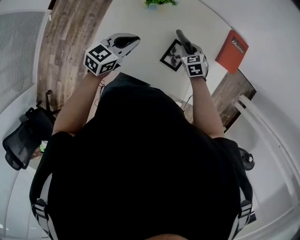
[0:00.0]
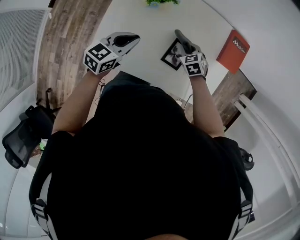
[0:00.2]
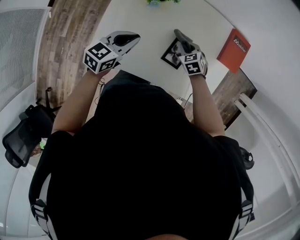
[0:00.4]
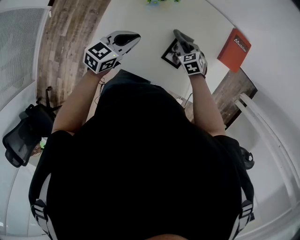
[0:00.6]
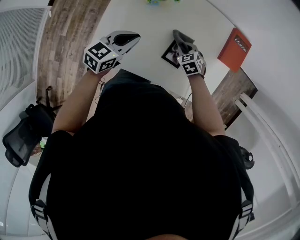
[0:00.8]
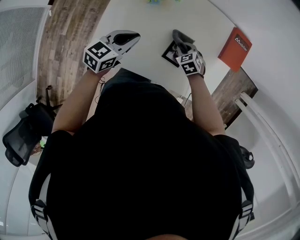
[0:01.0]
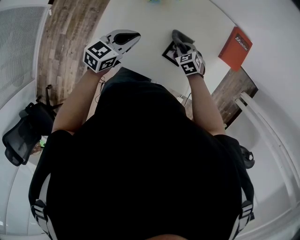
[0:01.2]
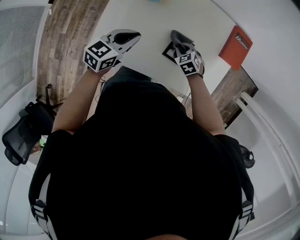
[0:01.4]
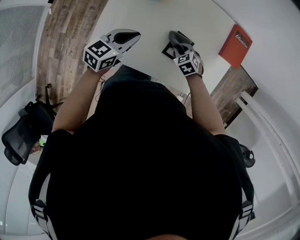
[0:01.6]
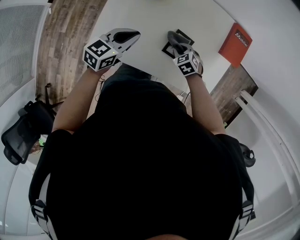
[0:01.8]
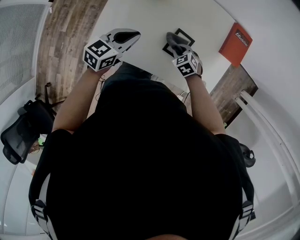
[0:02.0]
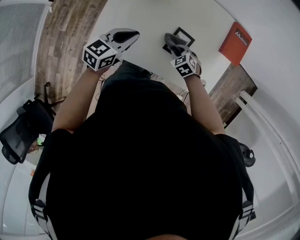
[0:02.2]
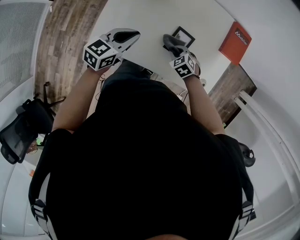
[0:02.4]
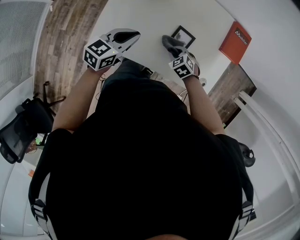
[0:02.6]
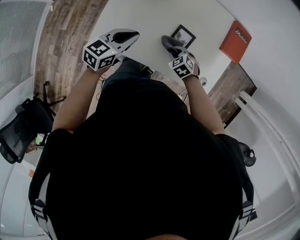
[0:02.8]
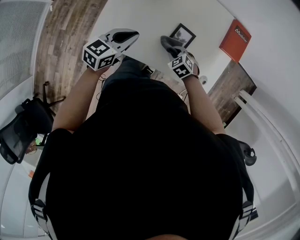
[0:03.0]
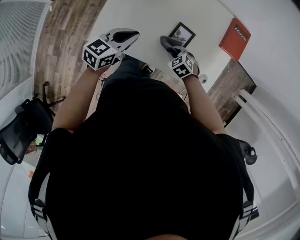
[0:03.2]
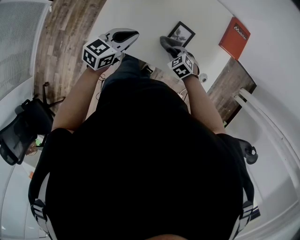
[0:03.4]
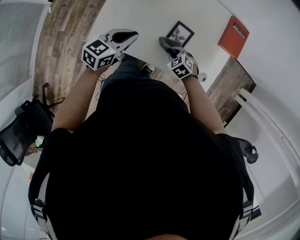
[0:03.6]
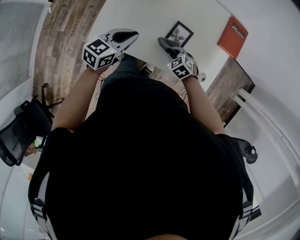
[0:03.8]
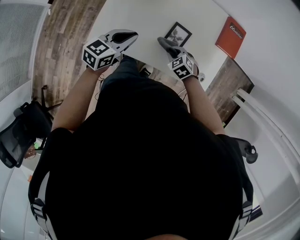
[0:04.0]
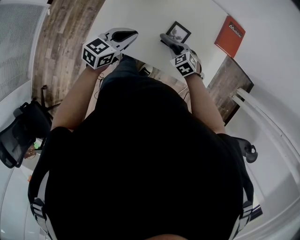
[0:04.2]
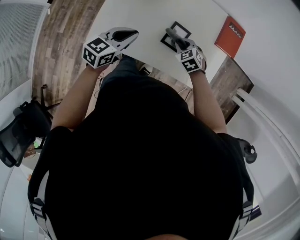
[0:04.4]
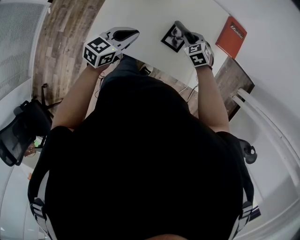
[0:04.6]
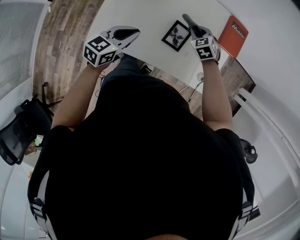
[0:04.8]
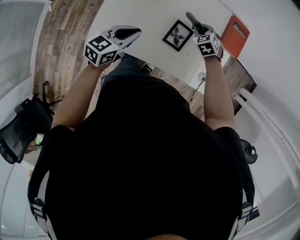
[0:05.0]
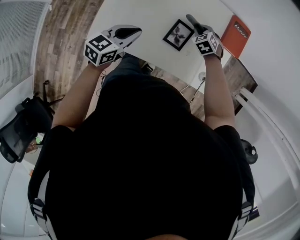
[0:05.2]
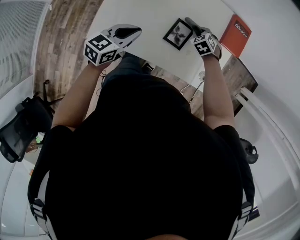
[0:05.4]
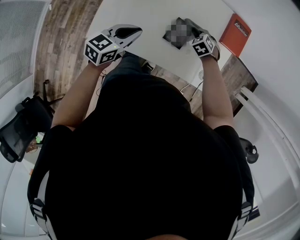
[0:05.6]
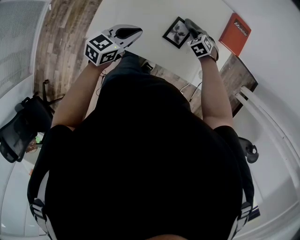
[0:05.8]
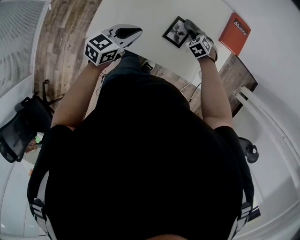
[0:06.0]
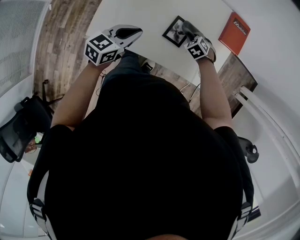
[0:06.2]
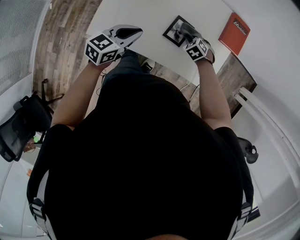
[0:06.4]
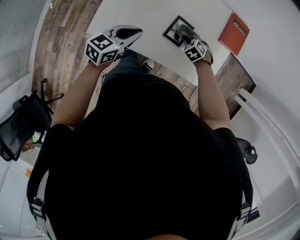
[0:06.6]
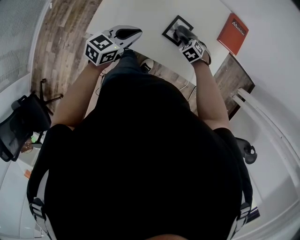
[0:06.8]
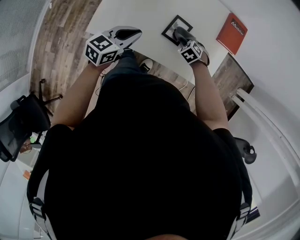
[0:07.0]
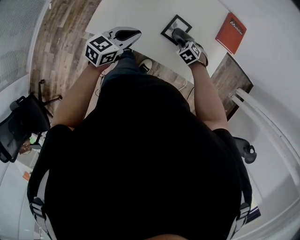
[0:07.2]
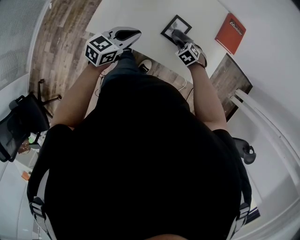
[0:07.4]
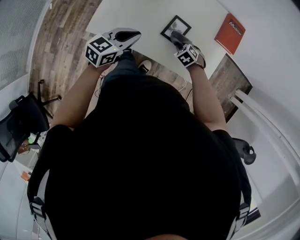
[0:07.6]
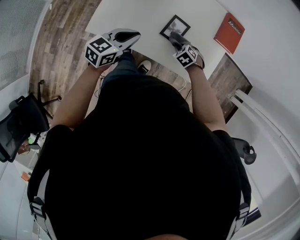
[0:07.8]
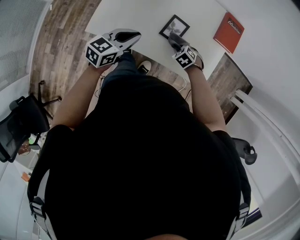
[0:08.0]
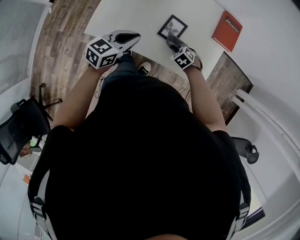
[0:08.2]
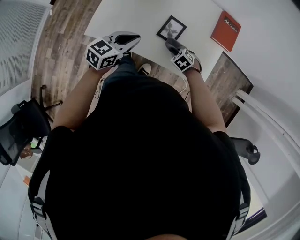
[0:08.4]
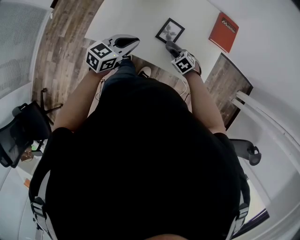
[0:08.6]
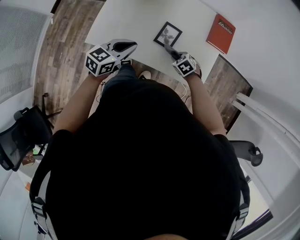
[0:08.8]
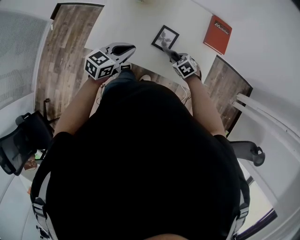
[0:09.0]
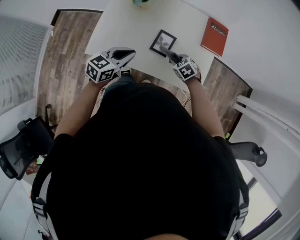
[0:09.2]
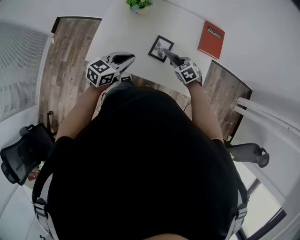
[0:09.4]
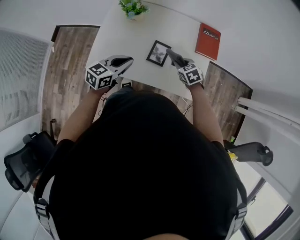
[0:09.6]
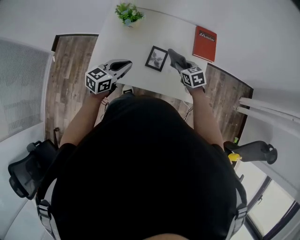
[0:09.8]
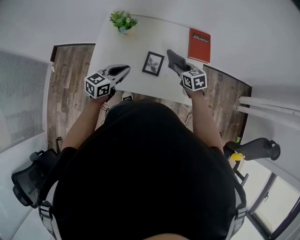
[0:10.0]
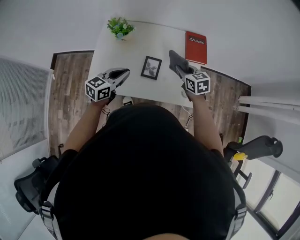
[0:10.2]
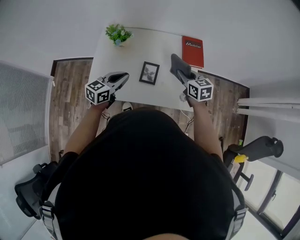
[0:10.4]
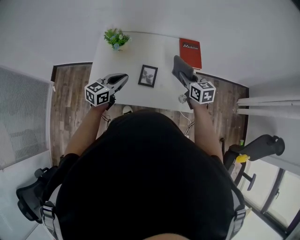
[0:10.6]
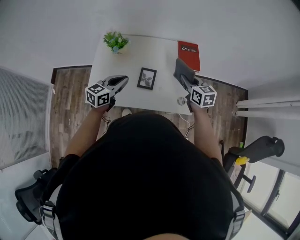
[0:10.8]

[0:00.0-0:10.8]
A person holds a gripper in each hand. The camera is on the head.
0.0 to 1.6 s: The right gripper moves backward, roughly 5 cm.
1.6 to 3.0 s: Both grippers travel together backward, approximately 5 cm.
3.0 to 4.6 s: The right gripper travels forward, upward and to the right by some 15 cm.
4.6 to 6.2 s: The right gripper heads downward, covering roughly 5 cm.
6.2 to 7.8 s: The right gripper shifts by roughly 10 cm.
7.8 to 9.2 s: The right gripper shifts approximately 5 cm upward.
9.2 to 10.8 s: The left gripper is displaced upward by approximately 5 cm. Meanwhile the right gripper heads upward and to the right, covering some 25 cm, and points its fingers some 40 degrees further upward.

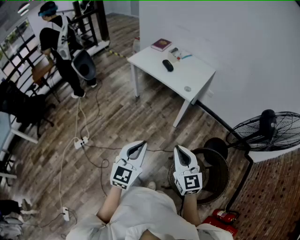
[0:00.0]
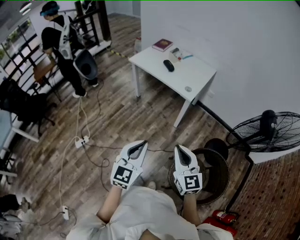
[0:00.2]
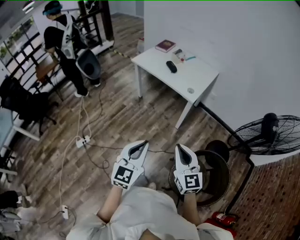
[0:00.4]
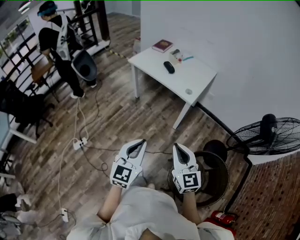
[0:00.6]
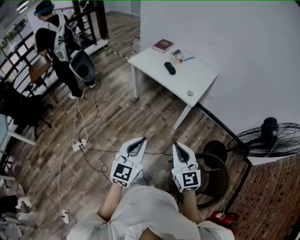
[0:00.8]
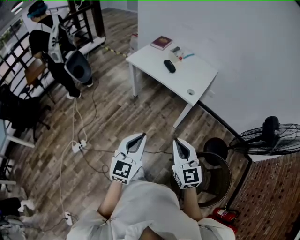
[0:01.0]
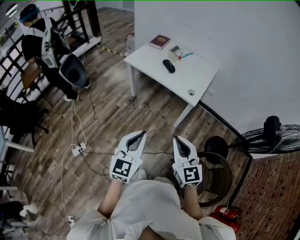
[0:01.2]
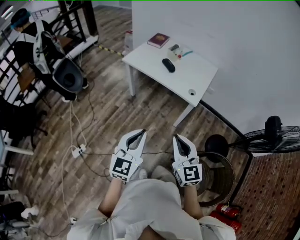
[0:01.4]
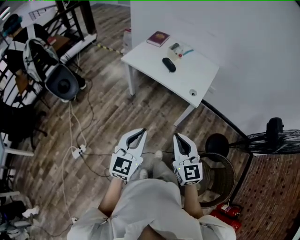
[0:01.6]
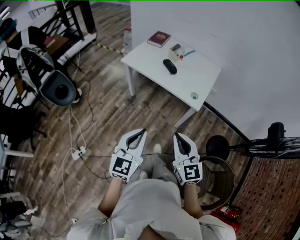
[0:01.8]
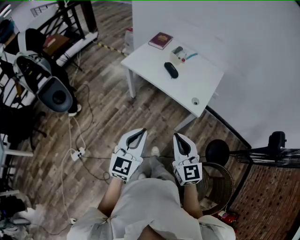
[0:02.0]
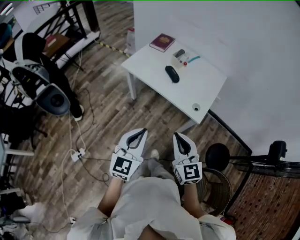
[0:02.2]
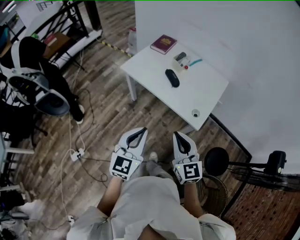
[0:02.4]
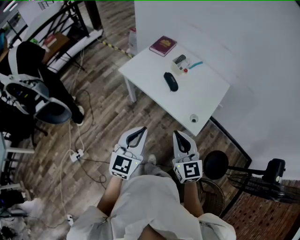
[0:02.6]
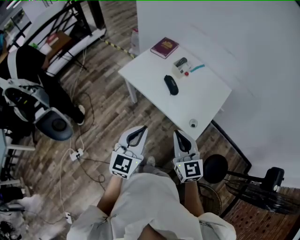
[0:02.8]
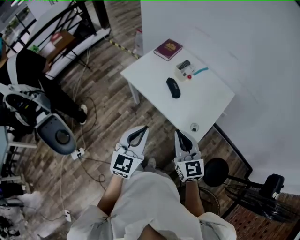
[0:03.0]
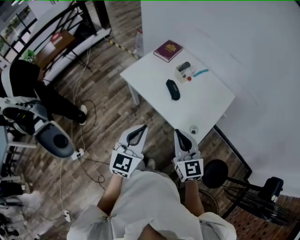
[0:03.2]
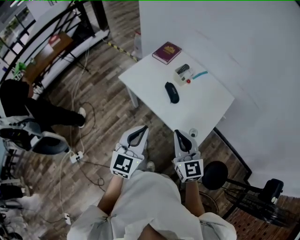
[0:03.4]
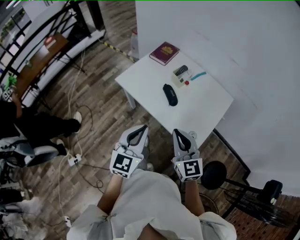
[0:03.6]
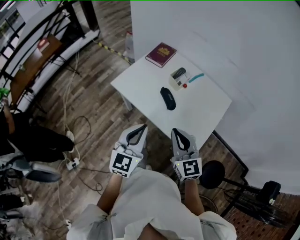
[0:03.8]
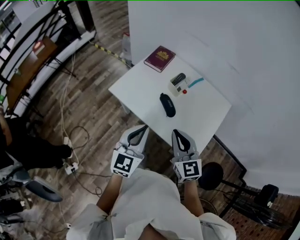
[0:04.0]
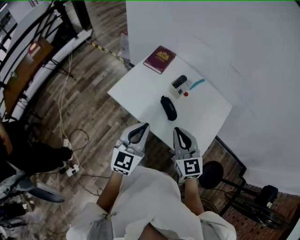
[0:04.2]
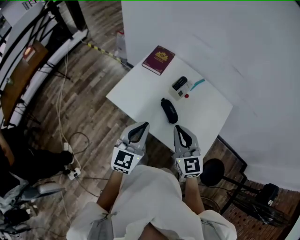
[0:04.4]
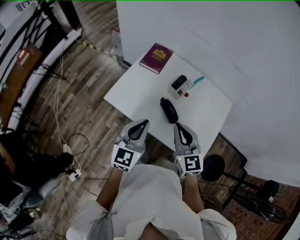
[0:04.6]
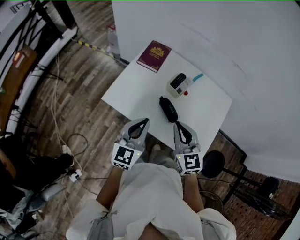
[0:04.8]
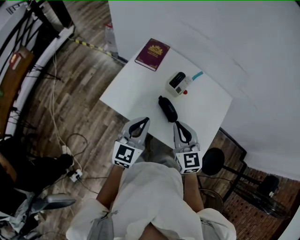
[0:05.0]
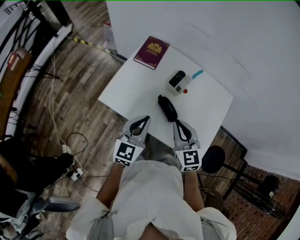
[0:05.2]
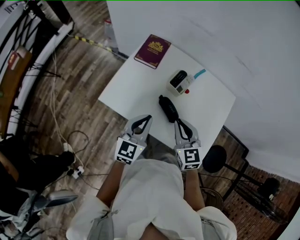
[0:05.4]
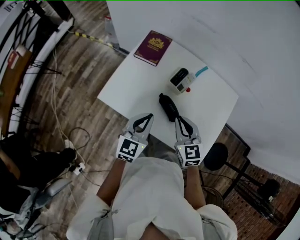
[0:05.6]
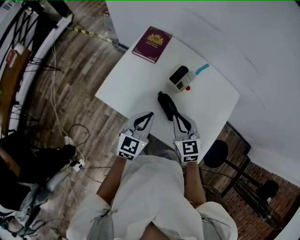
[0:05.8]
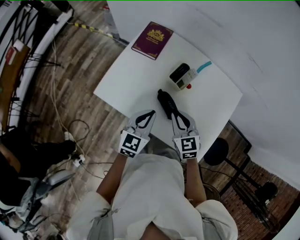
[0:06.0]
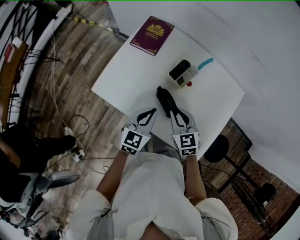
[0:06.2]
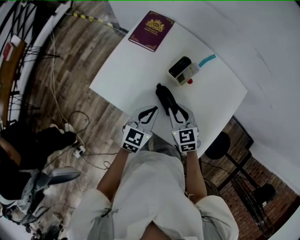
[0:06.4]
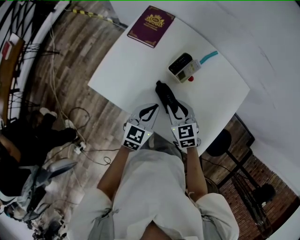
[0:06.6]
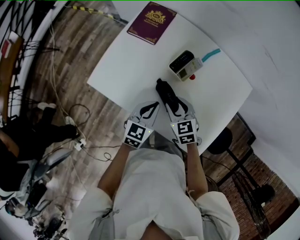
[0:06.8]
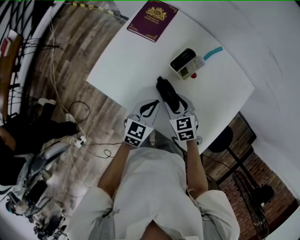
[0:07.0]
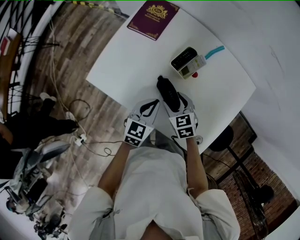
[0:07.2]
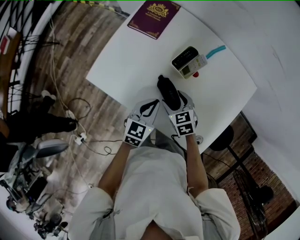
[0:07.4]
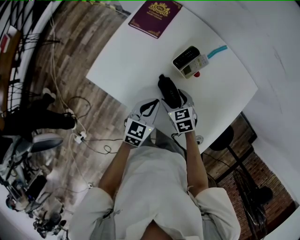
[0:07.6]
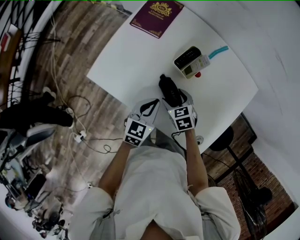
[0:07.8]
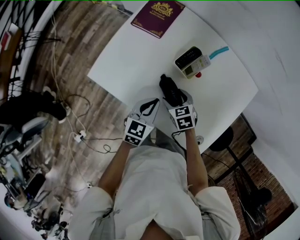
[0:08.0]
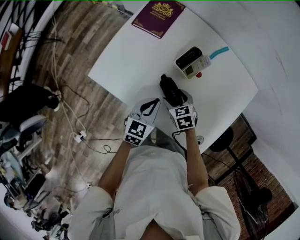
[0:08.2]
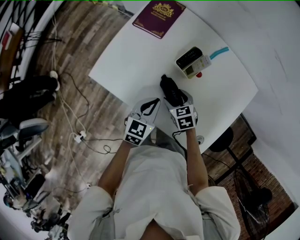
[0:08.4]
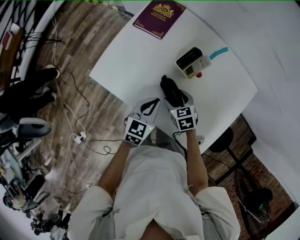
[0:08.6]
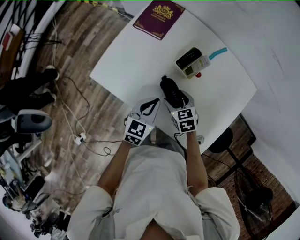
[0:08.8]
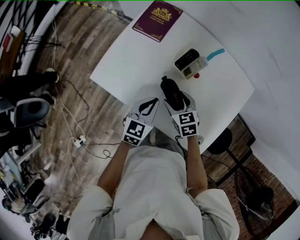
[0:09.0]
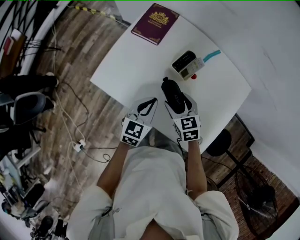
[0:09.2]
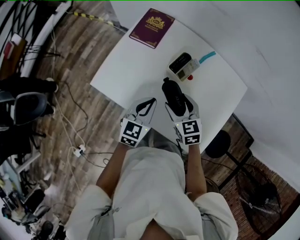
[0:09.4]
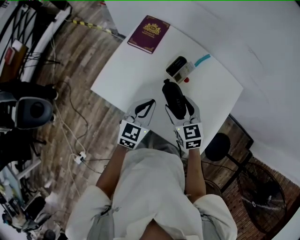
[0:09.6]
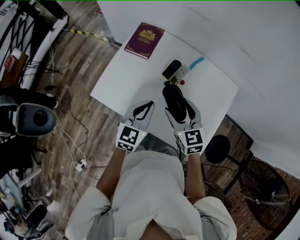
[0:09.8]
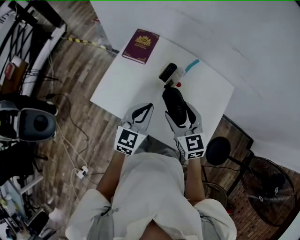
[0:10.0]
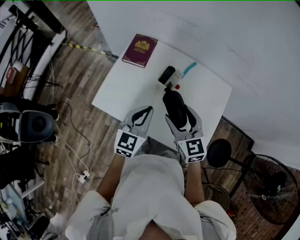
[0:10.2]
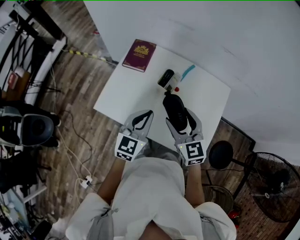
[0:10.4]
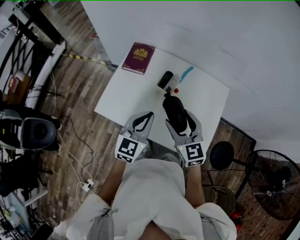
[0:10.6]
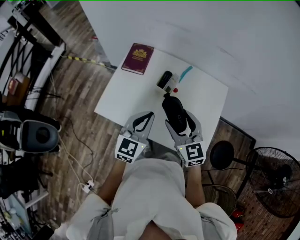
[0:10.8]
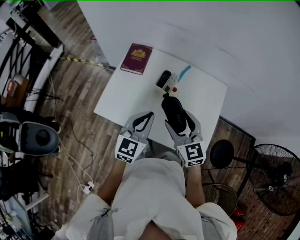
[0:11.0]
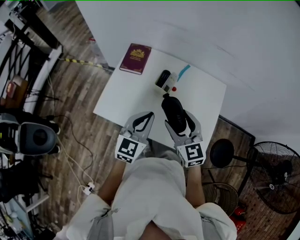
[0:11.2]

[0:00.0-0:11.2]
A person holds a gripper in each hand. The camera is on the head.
0.0 to 1.6 s: The two grippers go some 20 cm forward and to the left.
1.6 to 3.2 s: The two grippers go some 30 cm forward.
3.2 to 4.8 s: The grippers both shift forward by roughly 25 cm.
4.8 to 6.4 s: The right gripper shifts roughly 20 cm downward and forward, and swivels approximately 20 degrees; the left gripper heads downward, forward and to the right, covering about 20 cm, and swivels some 20 degrees.
6.4 to 8.0 s: The right gripper travels downward by about 10 cm, changes its angle by about 20 degrees, and opens its fingers, while the left gripper goes approximately 5 cm downward.
8.0 to 9.6 s: The right gripper moves upward, approximately 15 cm, and swivels roughly 30 degrees. Meanwhile the left gripper shifts about 10 cm upward.
9.6 to 11.2 s: The right gripper is displaced upward and backward by about 15 cm, while the left gripper travels upward by some 10 cm.

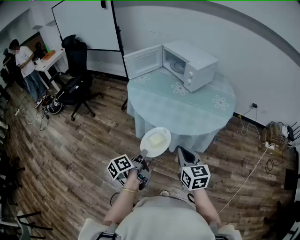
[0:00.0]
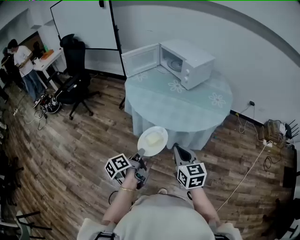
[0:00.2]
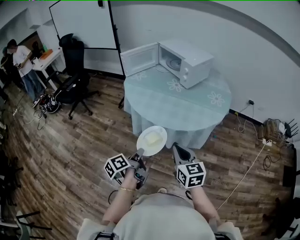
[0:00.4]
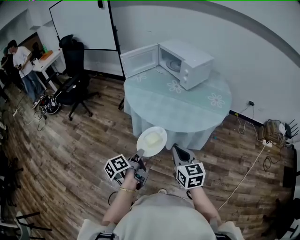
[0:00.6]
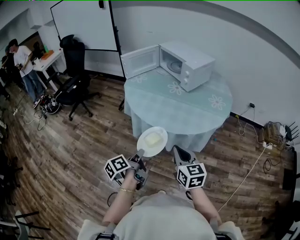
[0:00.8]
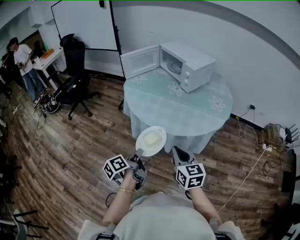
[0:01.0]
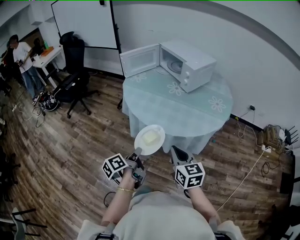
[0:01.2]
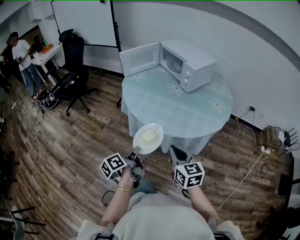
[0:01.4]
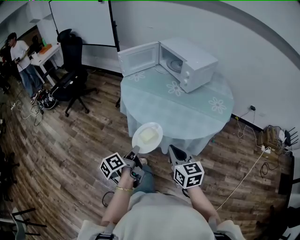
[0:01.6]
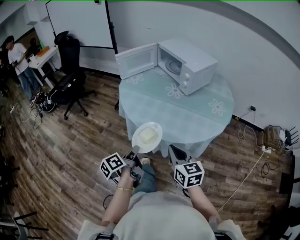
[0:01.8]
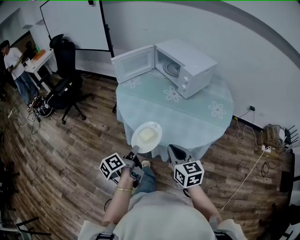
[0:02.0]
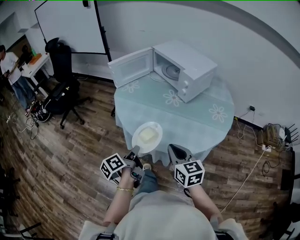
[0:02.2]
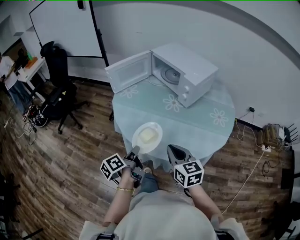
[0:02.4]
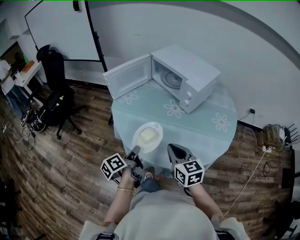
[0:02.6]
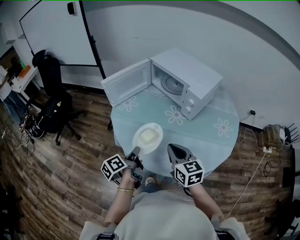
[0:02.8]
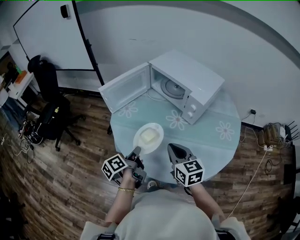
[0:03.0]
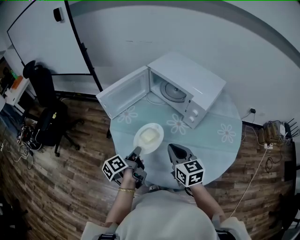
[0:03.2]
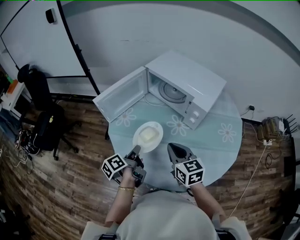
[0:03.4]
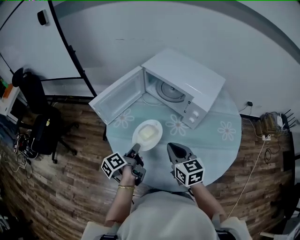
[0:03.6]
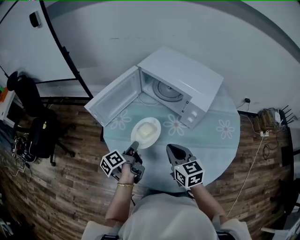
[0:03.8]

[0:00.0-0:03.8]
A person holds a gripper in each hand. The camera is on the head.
1.2 to 2.6 s: The right gripper shifts by some 25 cm.
2.6 to 3.8 s: The right gripper moves approximately 20 cm.
